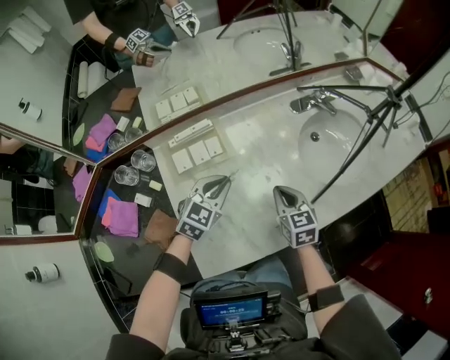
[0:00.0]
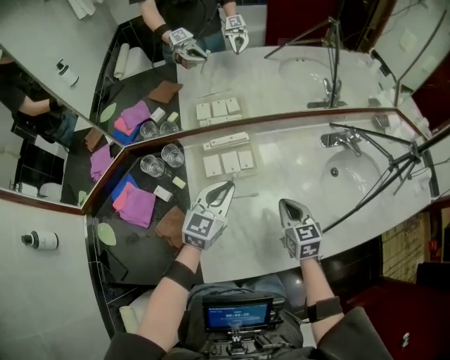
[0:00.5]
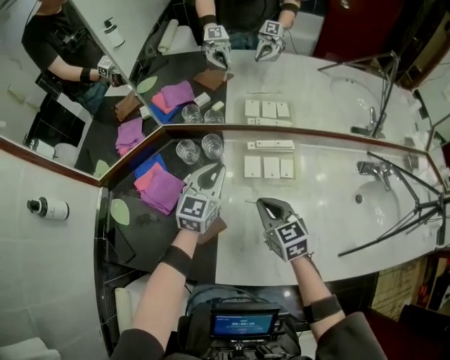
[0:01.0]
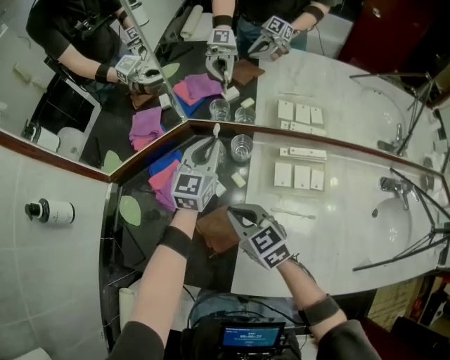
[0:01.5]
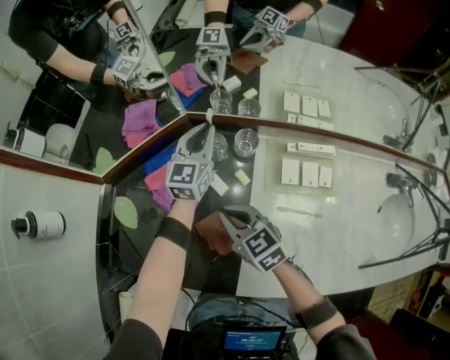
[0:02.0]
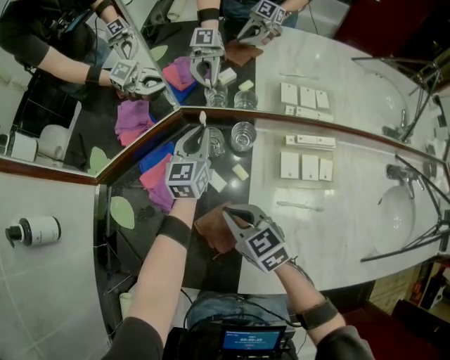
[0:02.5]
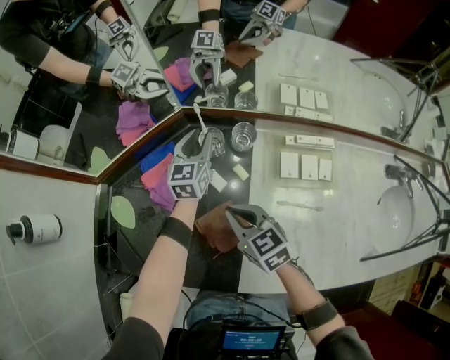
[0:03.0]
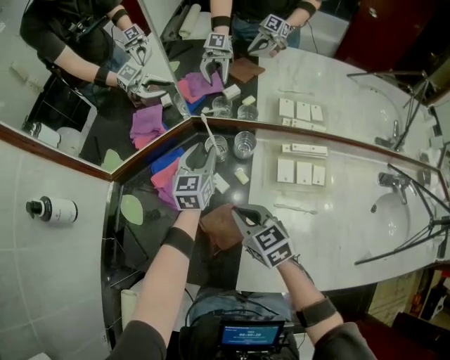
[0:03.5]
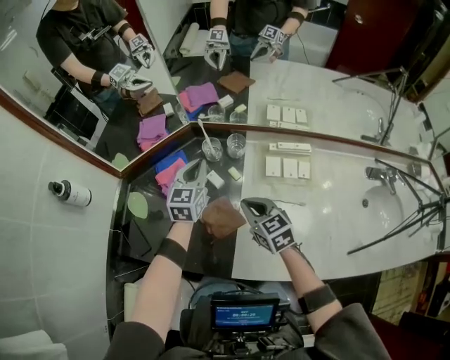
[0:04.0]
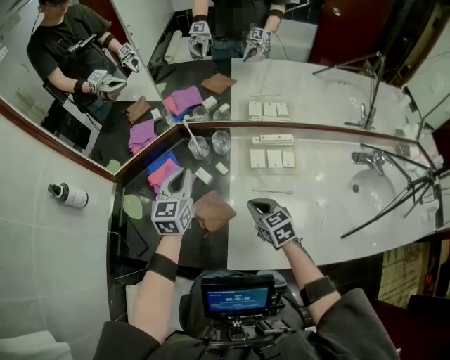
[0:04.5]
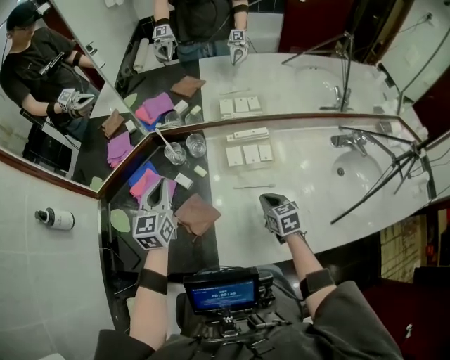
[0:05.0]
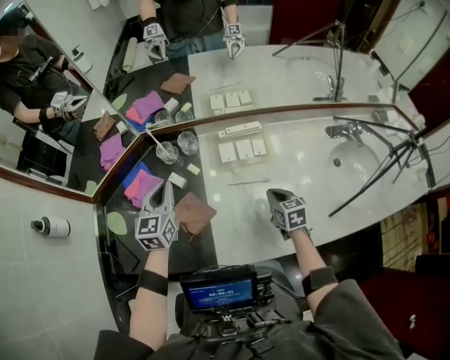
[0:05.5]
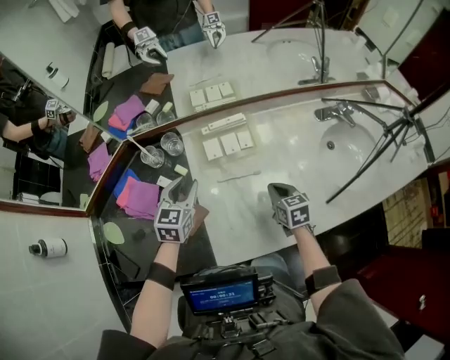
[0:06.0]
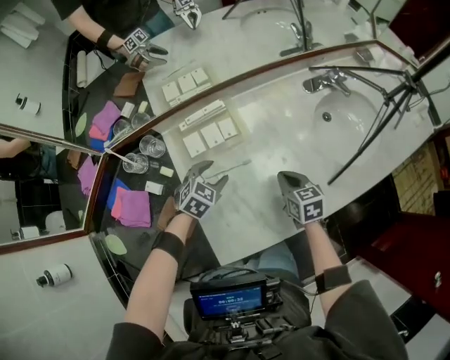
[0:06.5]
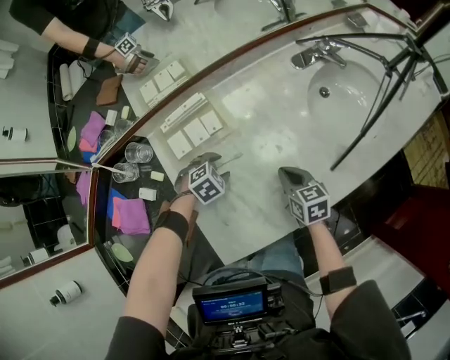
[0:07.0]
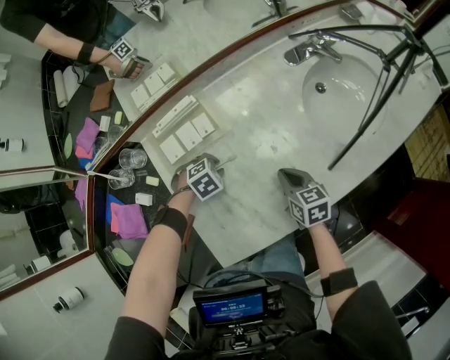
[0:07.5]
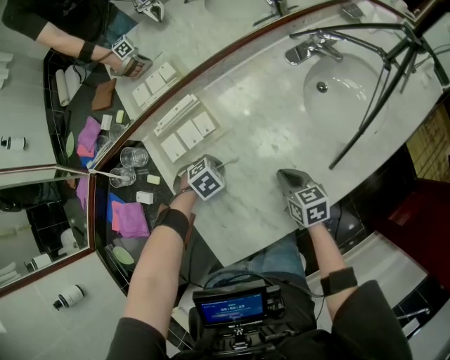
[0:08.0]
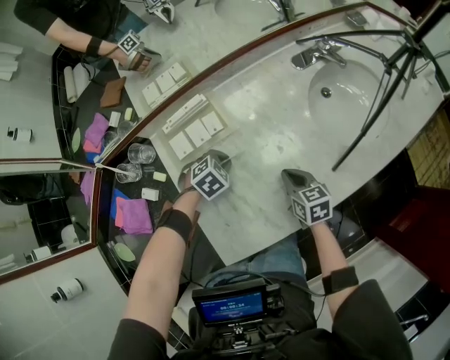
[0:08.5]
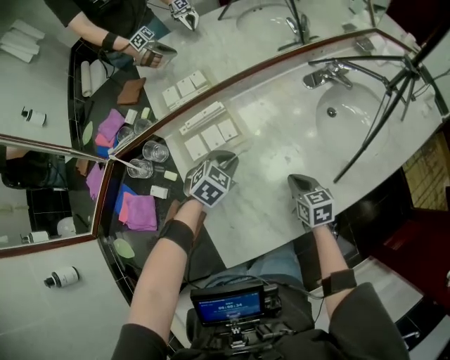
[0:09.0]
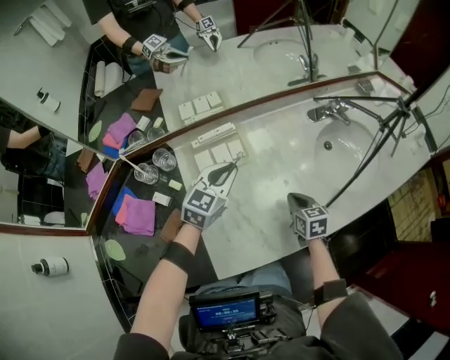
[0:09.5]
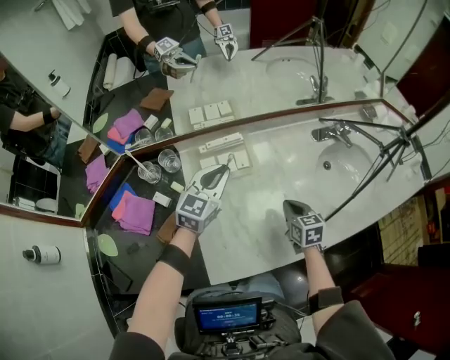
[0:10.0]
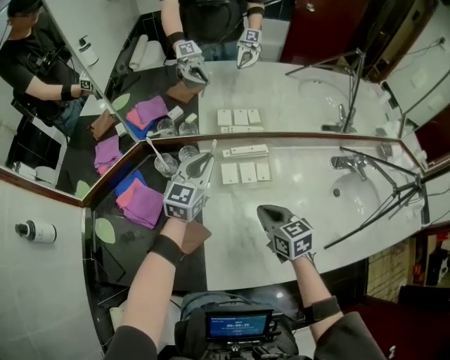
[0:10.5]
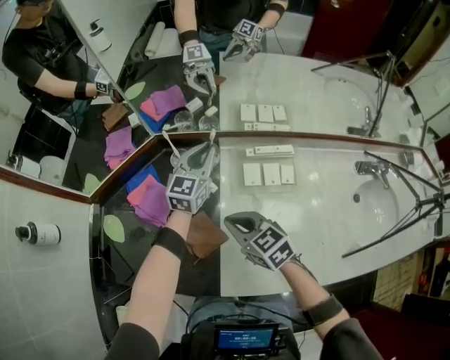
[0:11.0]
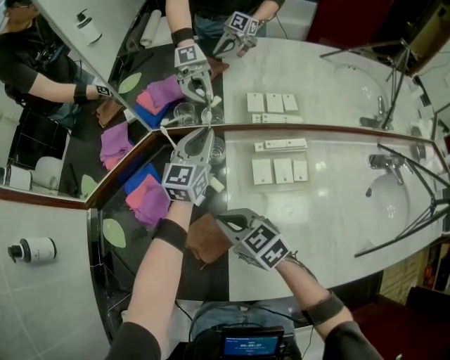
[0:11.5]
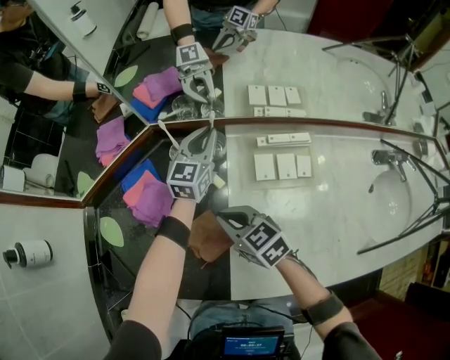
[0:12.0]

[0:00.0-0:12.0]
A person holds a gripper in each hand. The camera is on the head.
0:00.0 to 0:02.0: The two grippers travel together, approximately 50 cm. The left gripper swivels about 60 degrees. The right gripper turns by approximately 50 degrees.
0:02.0 to 0:04.0: The right gripper moves to the right and backward, approximately 10 cm; the left gripper travels backward by some 15 cm, and opens and closes again.
0:04.0 to 0:06.0: The left gripper goes upward and returns, roughly 5 cm each way, turns by approximately 20 degrees, and opens up. Meanwhile the right gripper ends up about 30 cm from where it was, and changes its angle by approximately 40 degrees.
0:06.0 to 0:08.0: The right gripper changes place by about 15 cm, while the left gripper is displaced downward by approximately 25 cm, tilts its fingers some 50 degrees downward, and closes its fingers.
0:08.0 to 0:10.0: The right gripper goes roughly 10 cm upward; the left gripper moves upward, about 30 cm, and points its fingers about 60 degrees further upward.
0:10.0 to 0:12.0: The right gripper changes place by approximately 40 cm, and swivels approximately 50 degrees; the left gripper shifts by about 30 cm, and changes its angle by roughly 30 degrees.

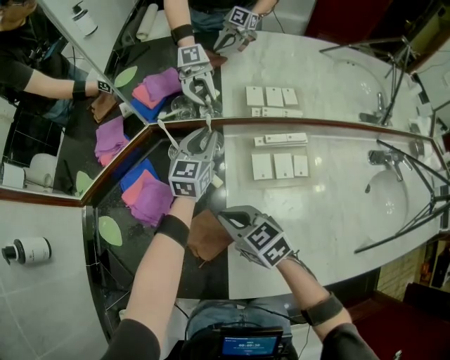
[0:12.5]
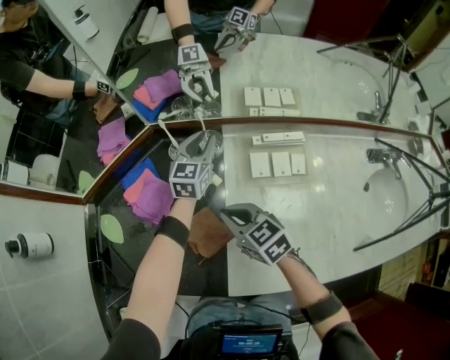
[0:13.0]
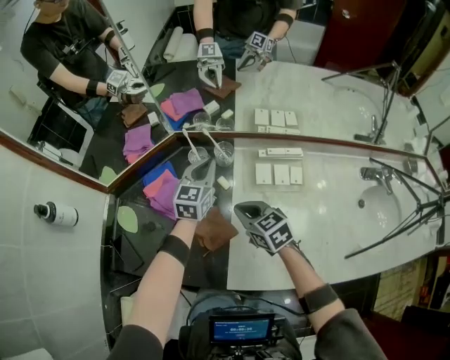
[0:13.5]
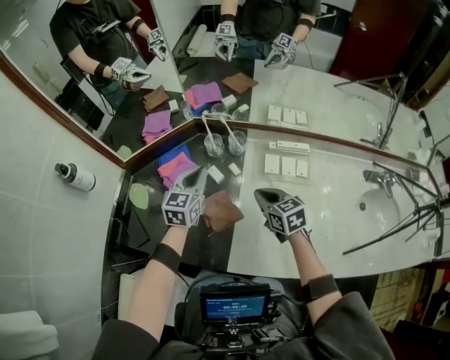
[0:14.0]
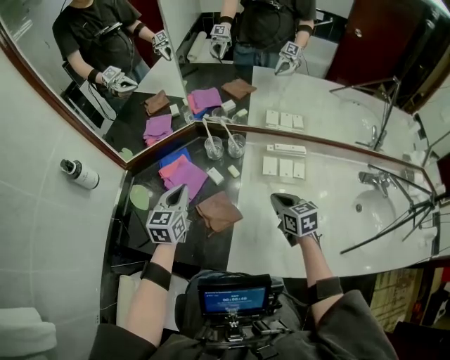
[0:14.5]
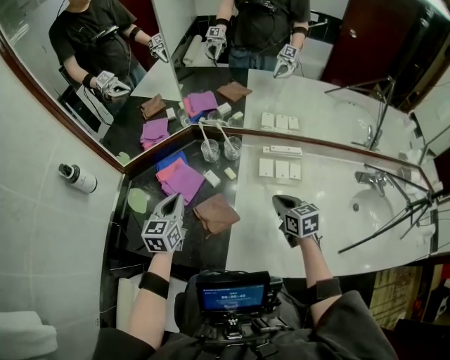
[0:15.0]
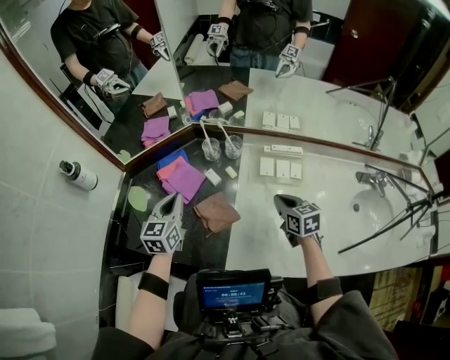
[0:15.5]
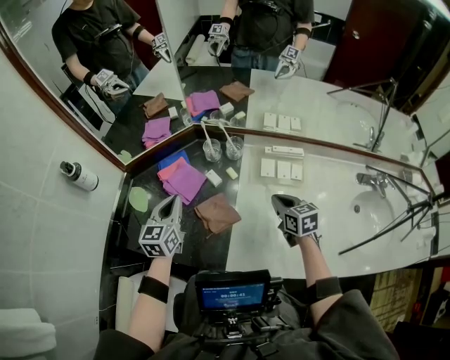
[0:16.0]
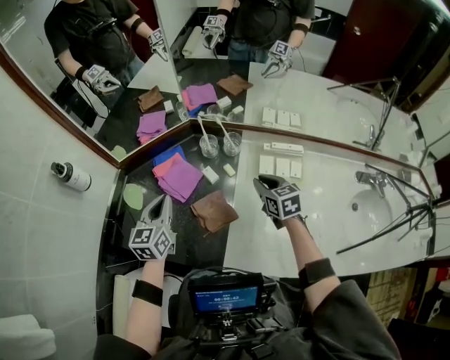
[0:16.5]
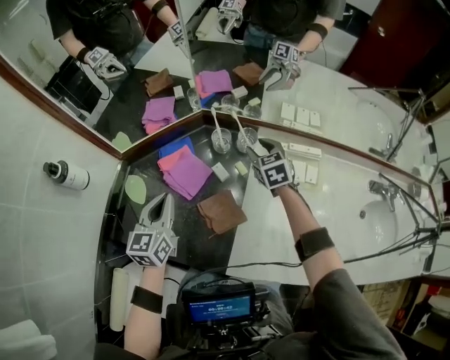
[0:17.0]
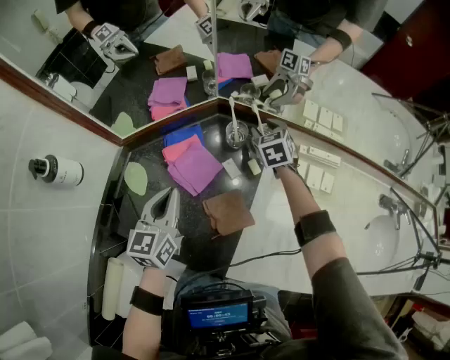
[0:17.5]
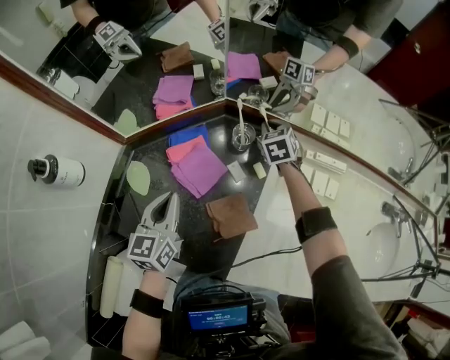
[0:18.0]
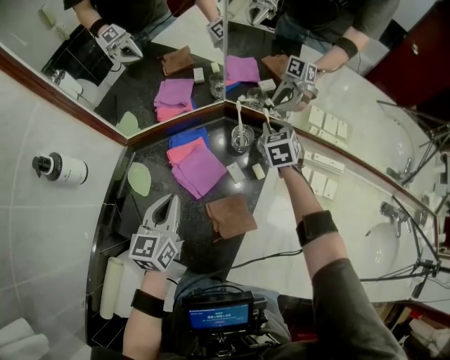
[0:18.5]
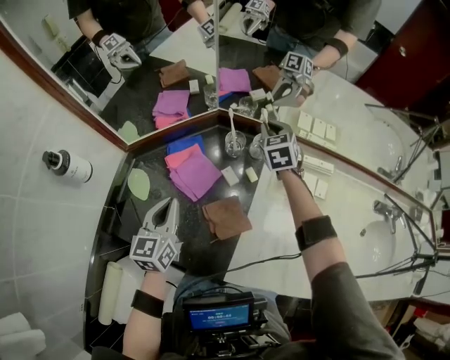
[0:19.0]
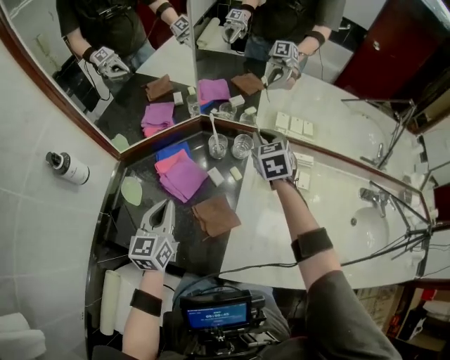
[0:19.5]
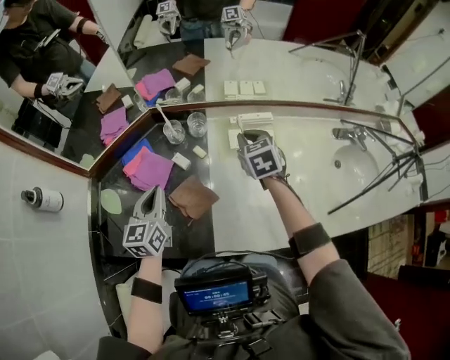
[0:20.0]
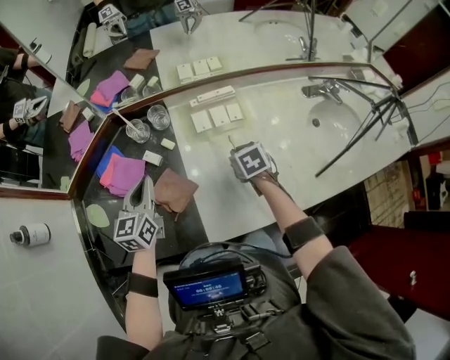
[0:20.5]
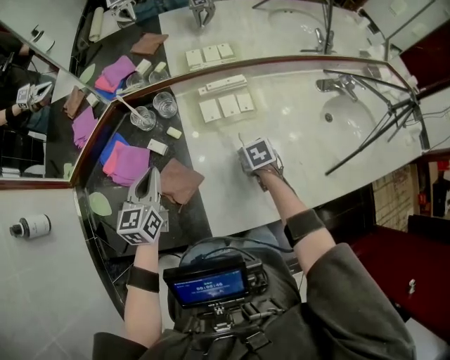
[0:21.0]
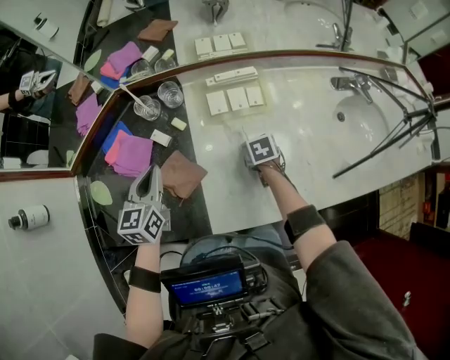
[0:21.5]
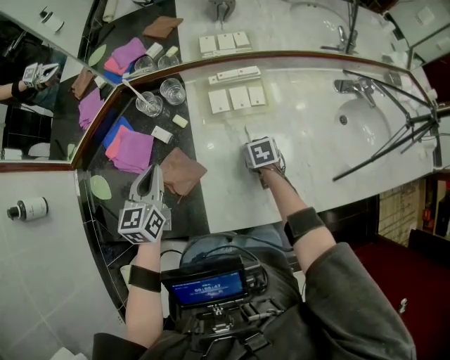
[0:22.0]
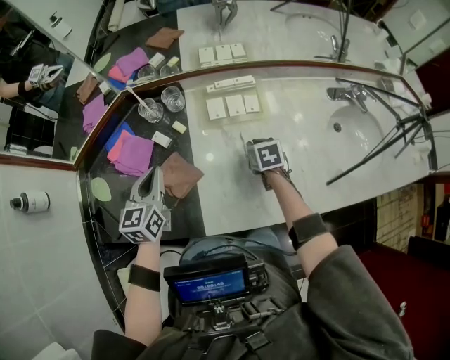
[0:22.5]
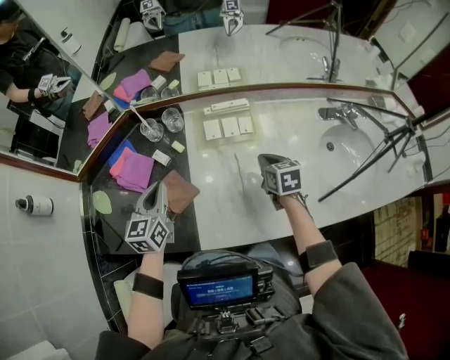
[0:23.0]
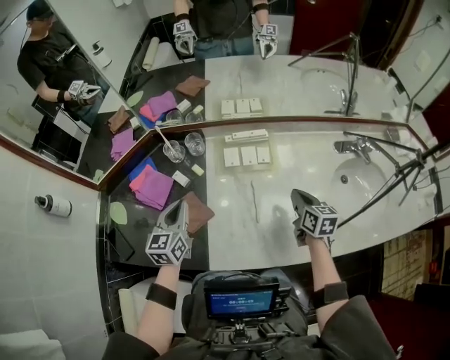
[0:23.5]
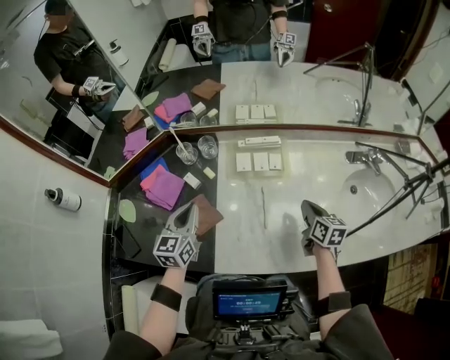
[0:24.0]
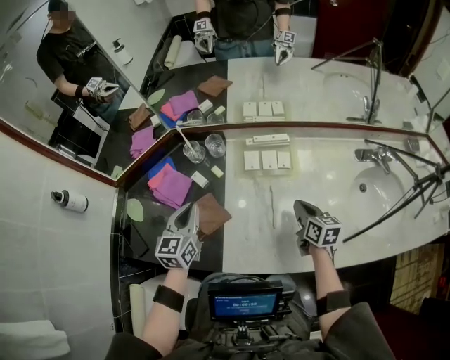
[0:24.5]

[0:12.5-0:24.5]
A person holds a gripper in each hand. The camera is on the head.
0:12.5 to 0:14.5: The right gripper goes about 15 cm to the right and backward. The left gripper travels to the left, backward and upward by approximately 35 cm.
0:14.5 to 0:16.5: The right gripper moves forward, some 5 cm, while the left gripper shifts by roughly 5 cm.
0:16.5 to 0:18.5: The left gripper changes place by approximately 5 cm. Meanwhile the right gripper travels forward by about 25 cm, turns by about 20 degrees, and opens and closes again.
0:18.5 to 0:20.5: The right gripper shifts roughly 40 cm backward and to the right, and swivels about 40 degrees. Meanwhile the left gripper shifts approximately 15 cm to the right, and changes its angle by approximately 30 degrees.
0:20.5 to 0:22.5: The right gripper goes about 5 cm downward.
0:22.5 to 0:24.5: The right gripper moves upward and to the right, some 10 cm, and turns by some 30 degrees.

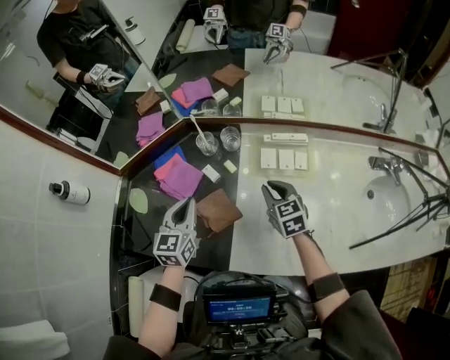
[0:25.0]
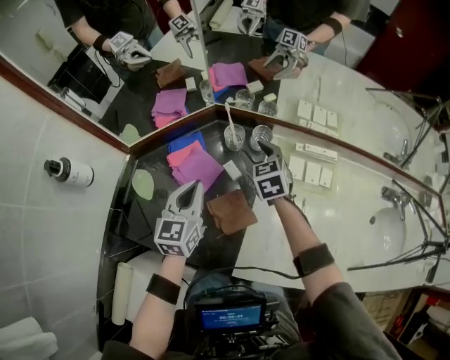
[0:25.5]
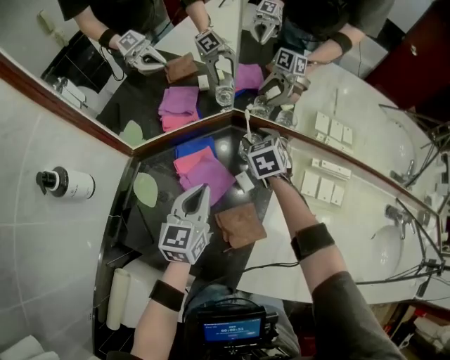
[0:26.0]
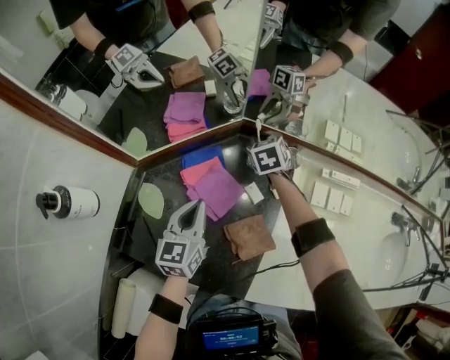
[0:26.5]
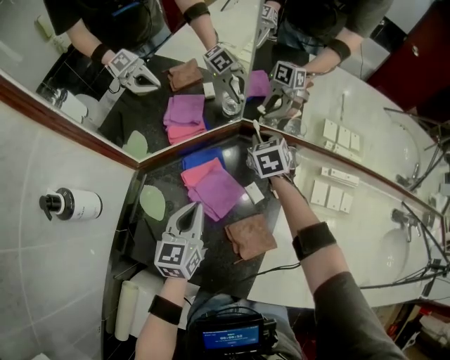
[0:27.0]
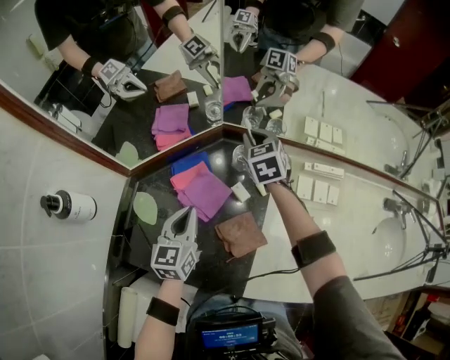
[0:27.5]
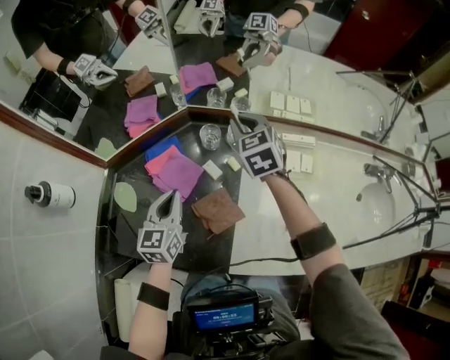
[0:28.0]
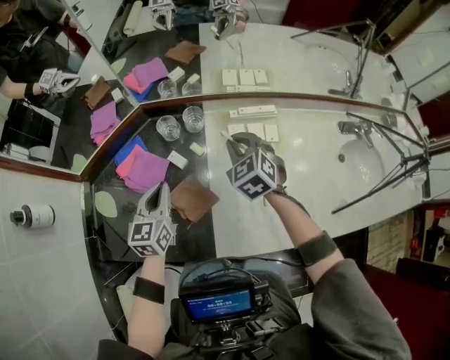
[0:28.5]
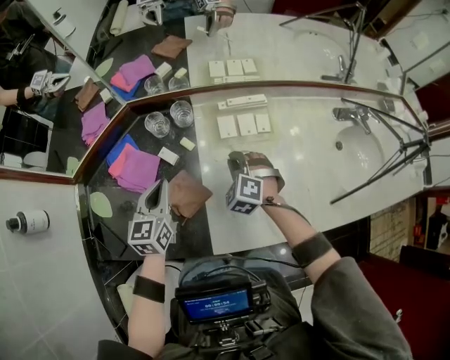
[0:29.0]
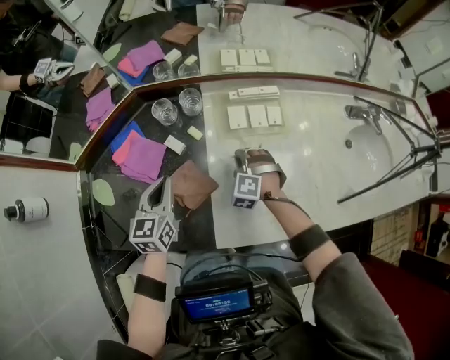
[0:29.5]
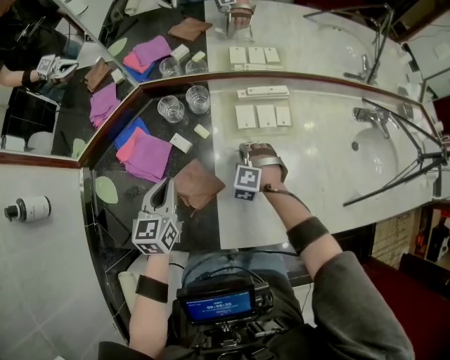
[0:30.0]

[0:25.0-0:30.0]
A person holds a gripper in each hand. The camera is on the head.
0:25.0 to 0:27.5: The right gripper moves forward and to the left, roughly 35 cm, and opens and closes again. The left gripper heads to the left, forward and downward, covering about 15 cm.
0:27.5 to 0:30.0: The left gripper travels to the right by approximately 15 cm; the right gripper moves to the right, backward and downward, roughly 35 cm, and rolls counterclockwise, seen from behind, by approximately 50 degrees.
